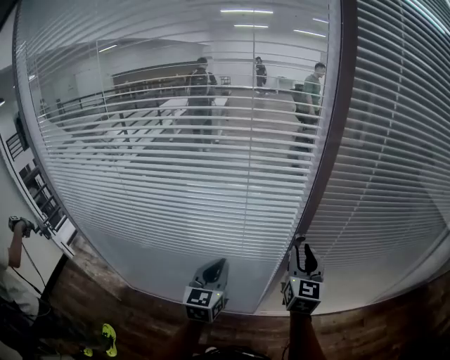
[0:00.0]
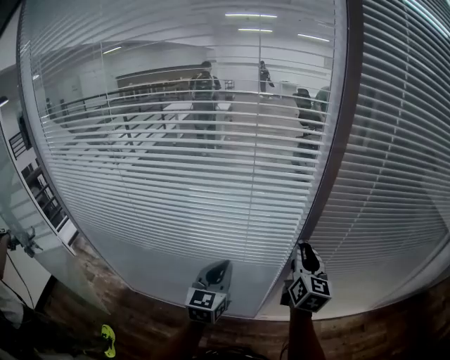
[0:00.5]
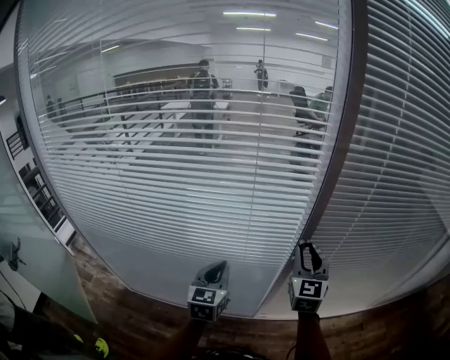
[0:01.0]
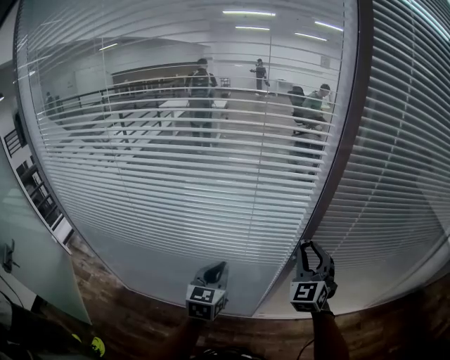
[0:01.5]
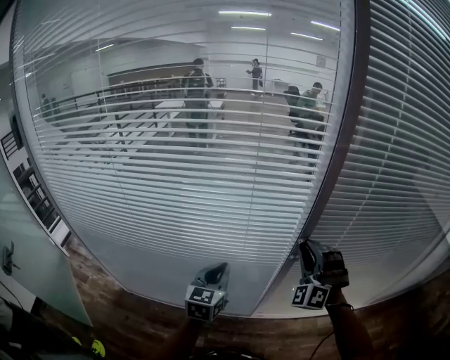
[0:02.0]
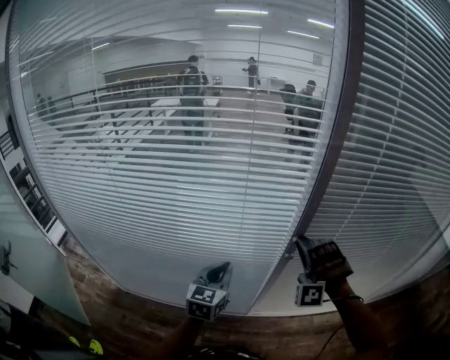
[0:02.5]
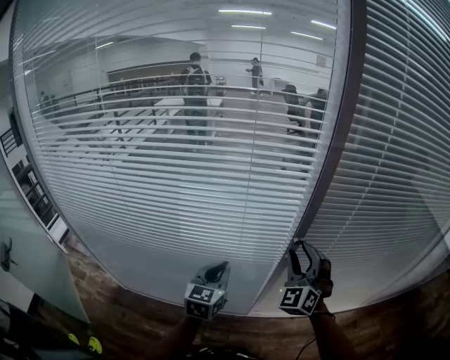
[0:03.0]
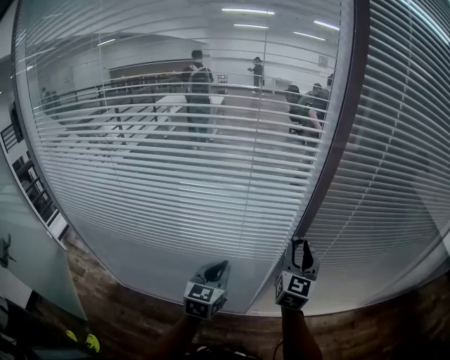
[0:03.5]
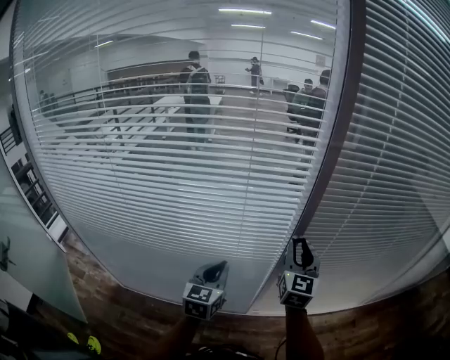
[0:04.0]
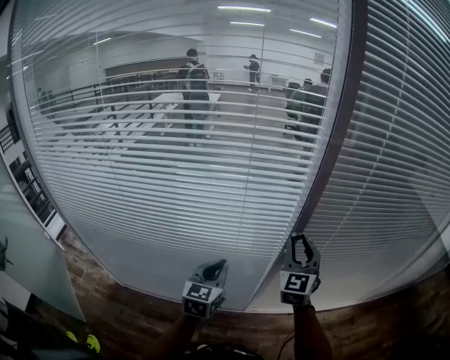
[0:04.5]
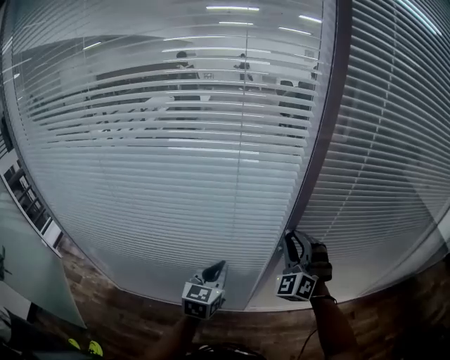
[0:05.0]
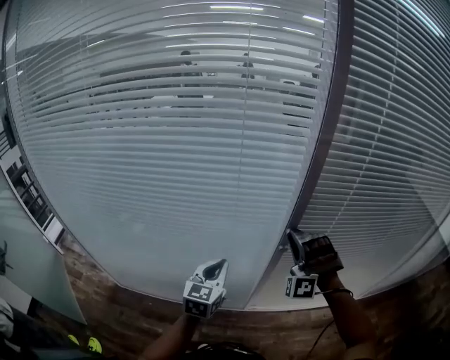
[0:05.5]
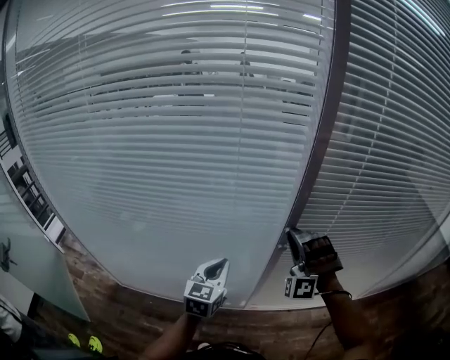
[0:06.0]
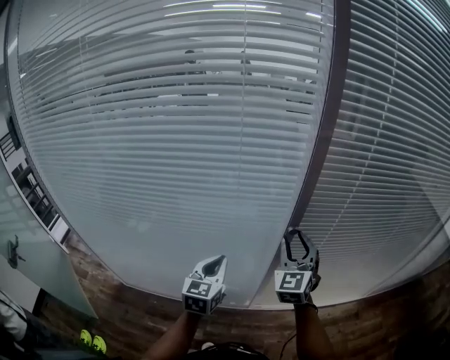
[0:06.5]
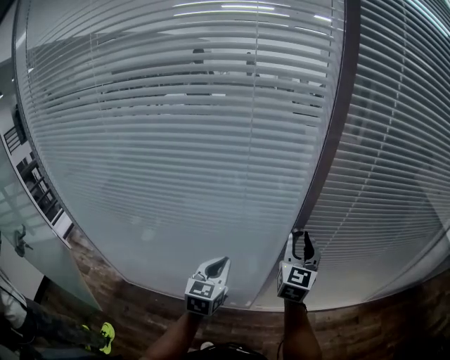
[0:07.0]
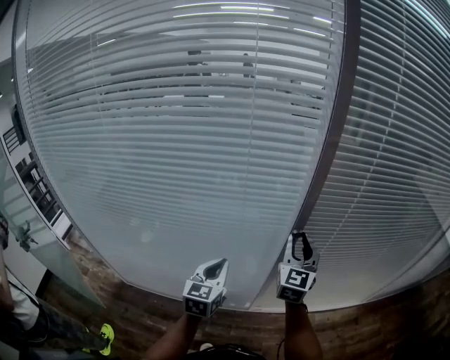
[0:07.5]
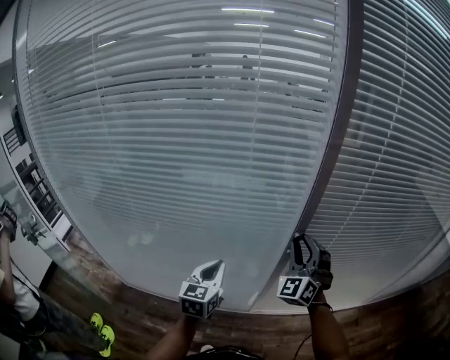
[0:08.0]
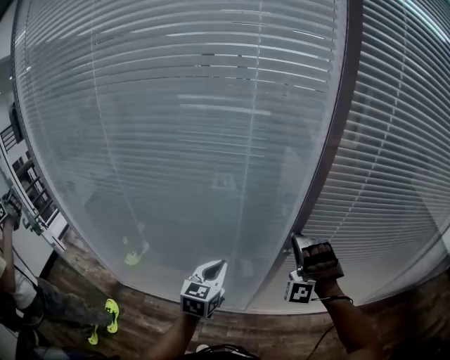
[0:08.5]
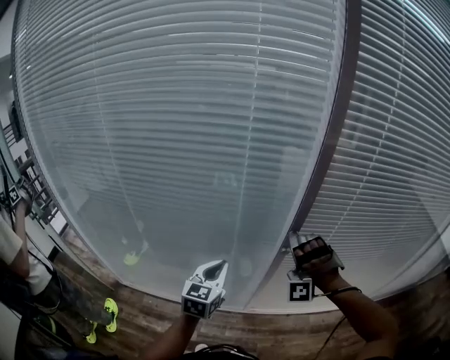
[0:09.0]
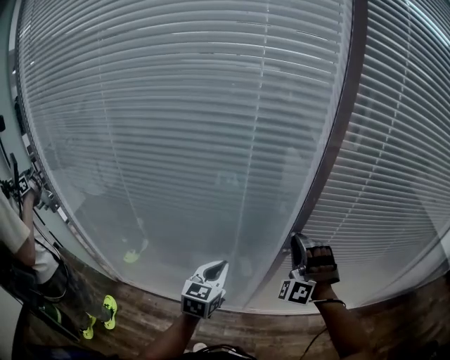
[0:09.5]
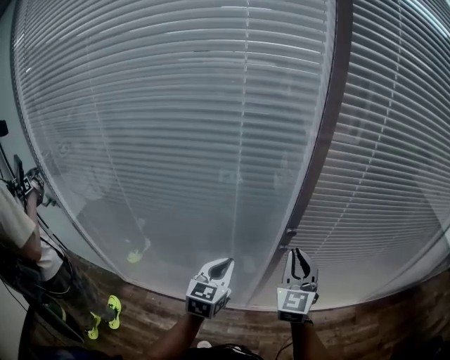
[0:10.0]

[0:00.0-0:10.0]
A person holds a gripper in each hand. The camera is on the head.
0:00.0 to 0:02.0: The right gripper rolls counterclockwise, seen from behind, by roughly 80 degrees.
0:02.0 to 0:04.0: The right gripper rolls clockwise, seen from behind, by approximately 70 degrees.
0:04.0 to 0:06.0: The right gripper twists roughly 90 degrees counterclockwise, seen from behind.
0:06.0 to 0:08.0: The right gripper rolls clockwise, seen from behind, by about 40 degrees.
0:08.0 to 0:10.0: The left gripper travels to the right and upward by approximately 10 cm. Meanwhile the right gripper travels backward by some 5 cm, and turns by about 30 degrees.

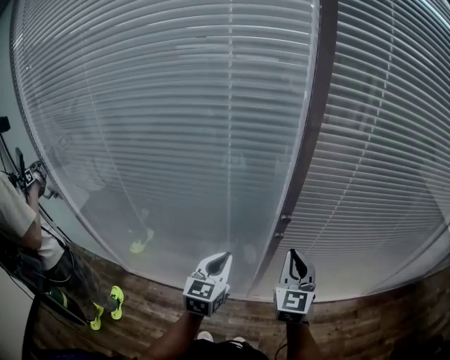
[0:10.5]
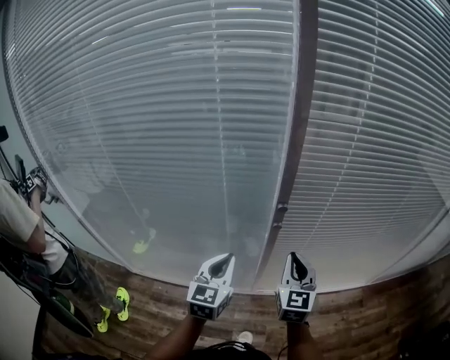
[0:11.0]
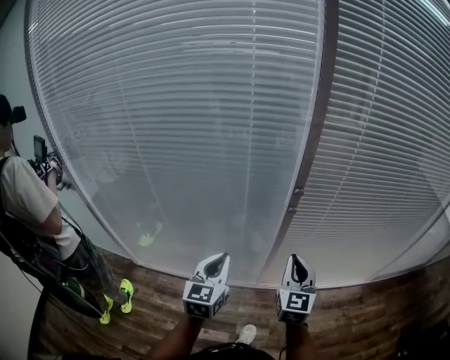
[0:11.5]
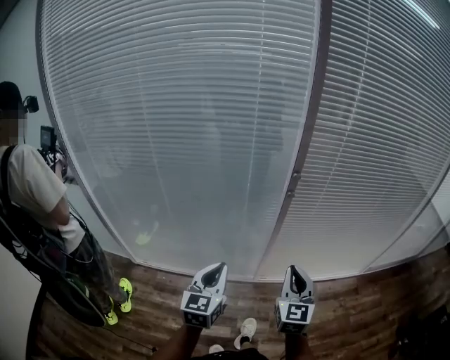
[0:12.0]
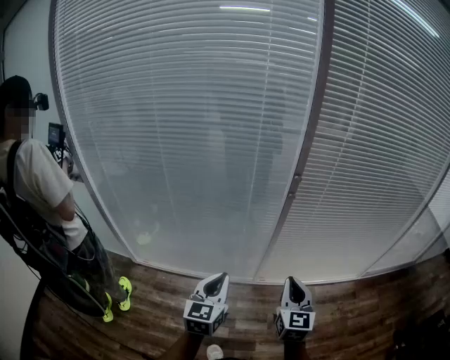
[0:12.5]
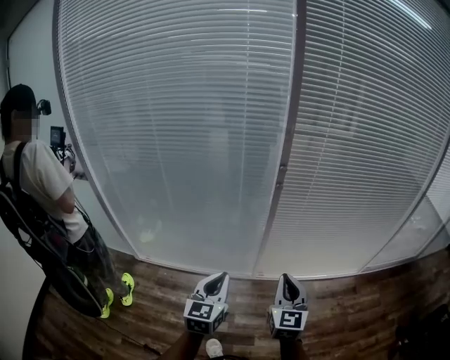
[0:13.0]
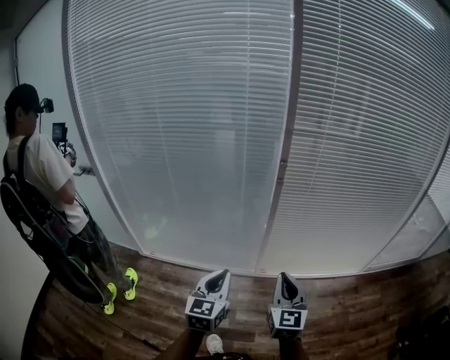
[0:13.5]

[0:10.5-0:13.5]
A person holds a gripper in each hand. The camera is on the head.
0:10.5 to 0:12.0: Both grippers move backward, about 25 cm.
0:12.0 to 0:13.5: Both grippers move backward and to the right, some 10 cm.

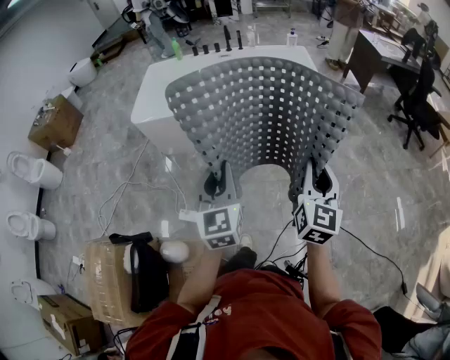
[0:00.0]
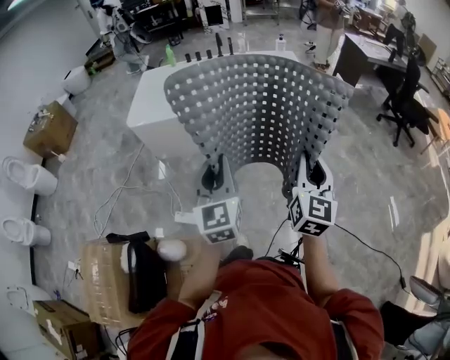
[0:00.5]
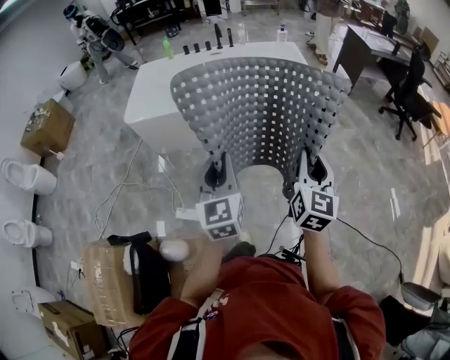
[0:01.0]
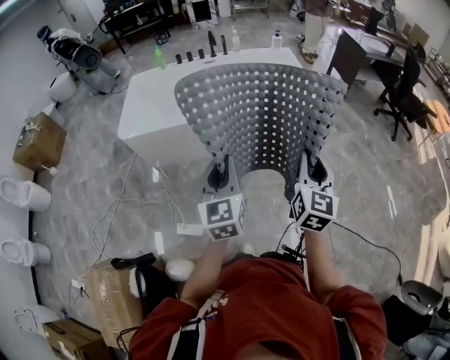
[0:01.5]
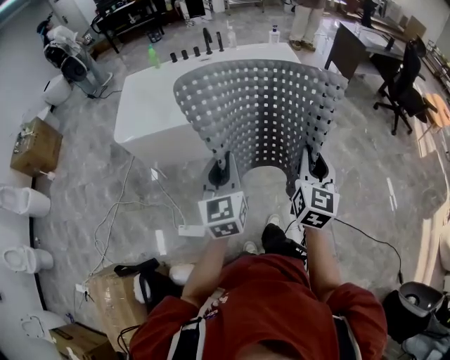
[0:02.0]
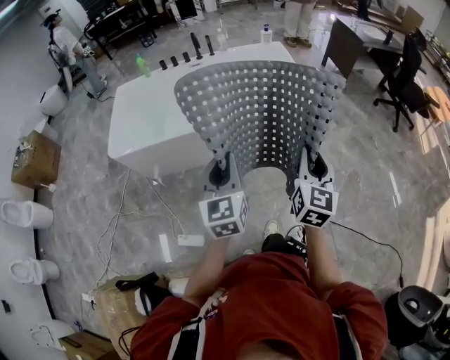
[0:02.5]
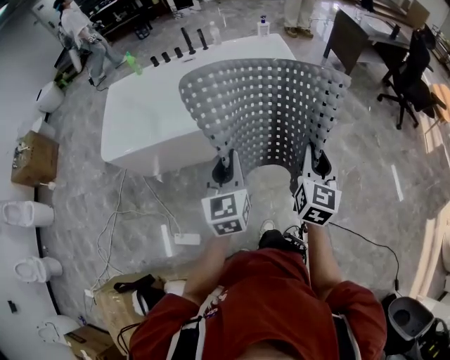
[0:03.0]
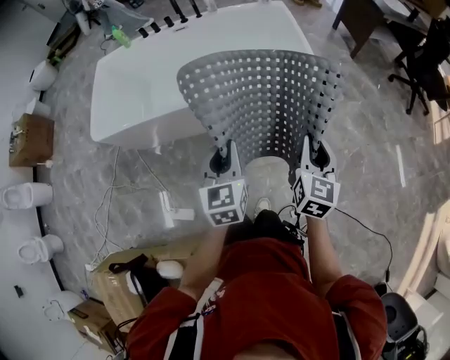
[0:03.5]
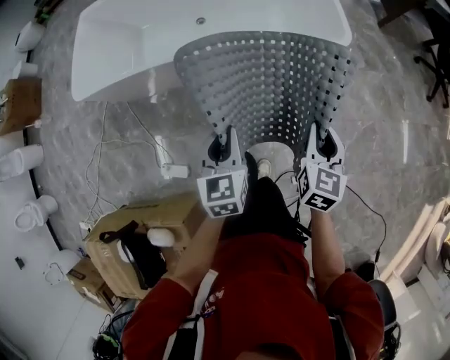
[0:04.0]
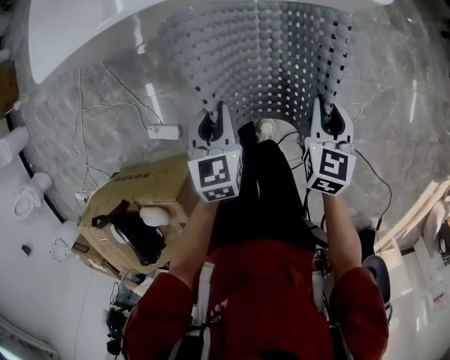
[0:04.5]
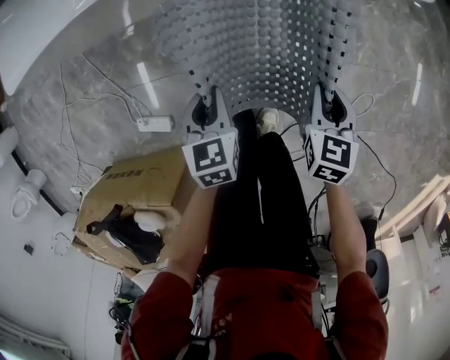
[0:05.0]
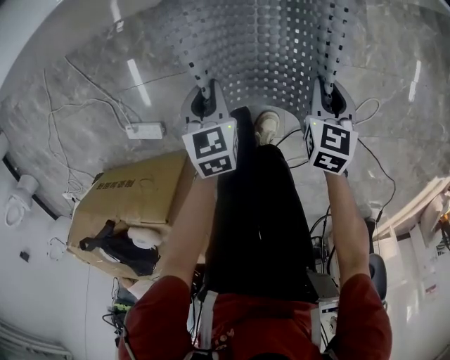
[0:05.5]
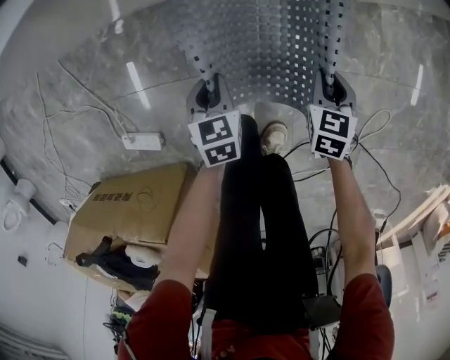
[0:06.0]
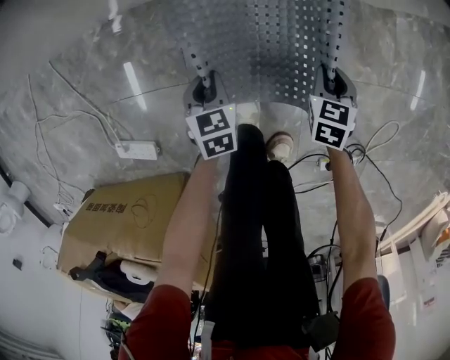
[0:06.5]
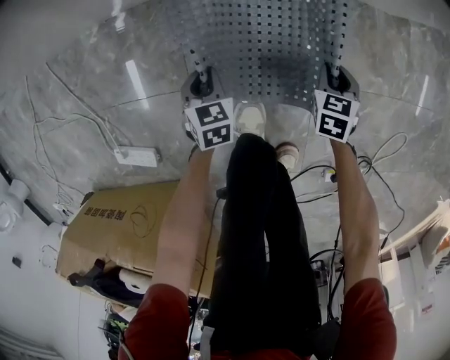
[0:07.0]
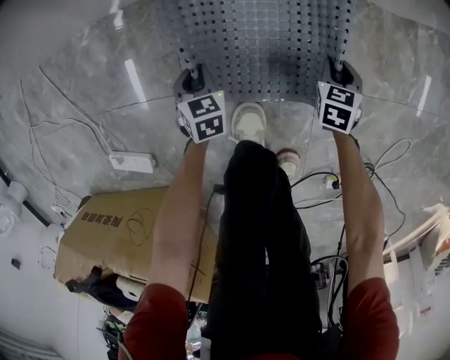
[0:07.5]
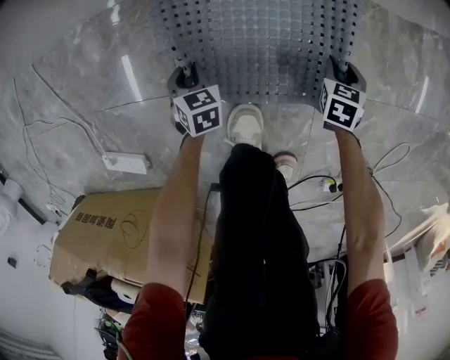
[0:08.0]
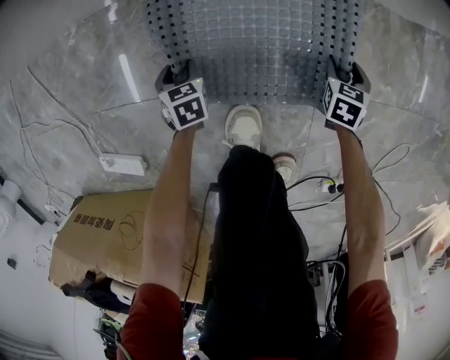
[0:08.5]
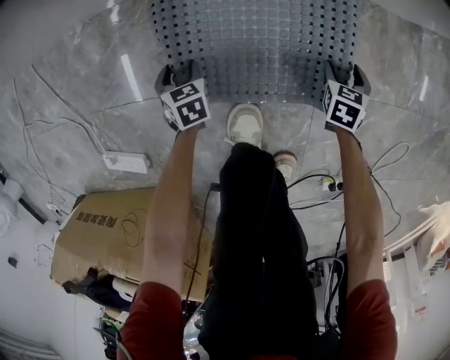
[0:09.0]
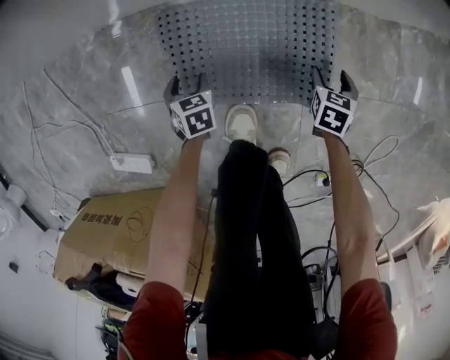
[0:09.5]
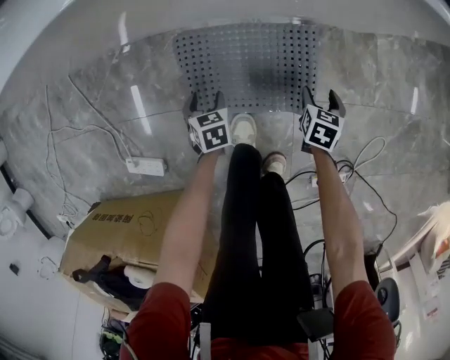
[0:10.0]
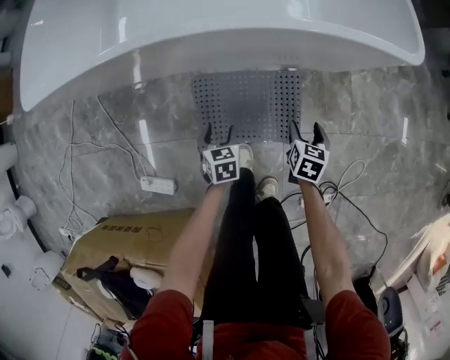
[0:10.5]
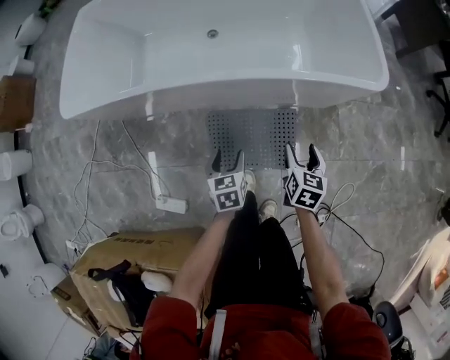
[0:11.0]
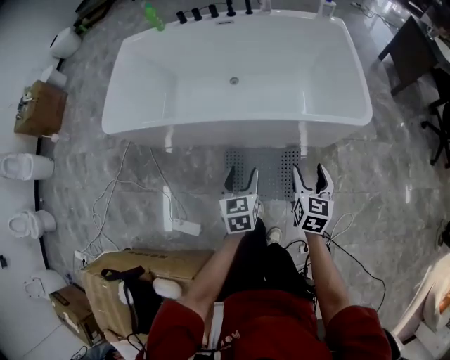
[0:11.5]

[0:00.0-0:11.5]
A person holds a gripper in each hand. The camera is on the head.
0:00.0 to 0:02.0: The left gripper moves forward, roughly 10 cm. The right gripper goes about 10 cm forward and to the left.
0:02.0 to 0:04.0: The two grippers go about 30 cm downward and forward. The left gripper changes its angle by roughly 20 degrees. The right gripper turns by roughly 20 degrees.
0:04.0 to 0:06.0: The two grippers go about 50 cm downward. The right gripper turns by about 30 degrees; the left gripper changes its angle by some 20 degrees.
0:06.0 to 0:07.5: The two grippers go some 20 cm downward.
0:07.5 to 0:09.5: The right gripper opens; the left gripper opens its fingers.
0:09.5 to 0:11.5: Both grippers travel together upward, some 70 cm. The right gripper tilts its fingers some 30 degrees upward. The left gripper tilts its fingers about 30 degrees upward.

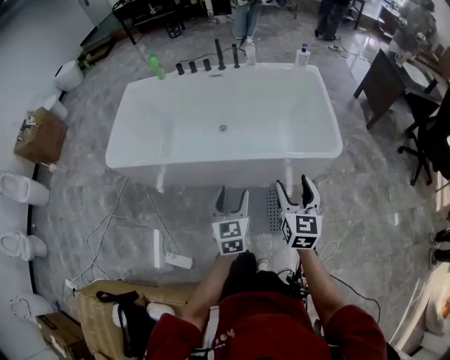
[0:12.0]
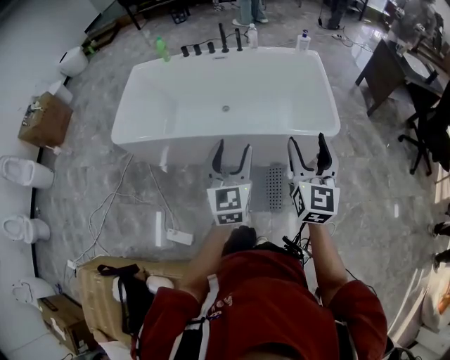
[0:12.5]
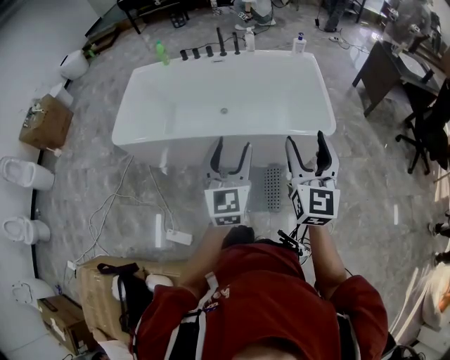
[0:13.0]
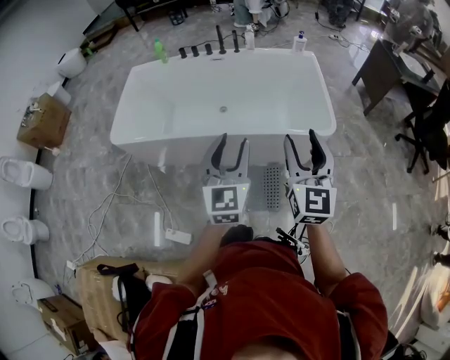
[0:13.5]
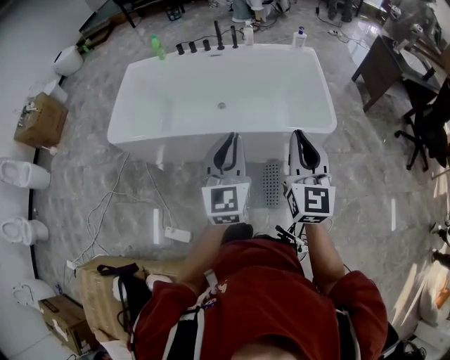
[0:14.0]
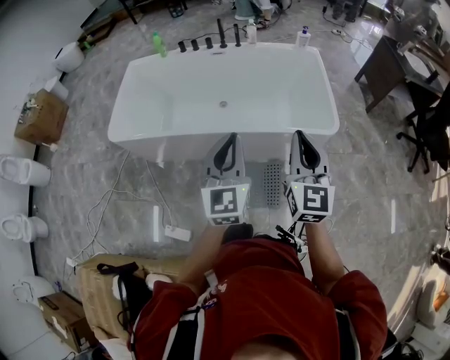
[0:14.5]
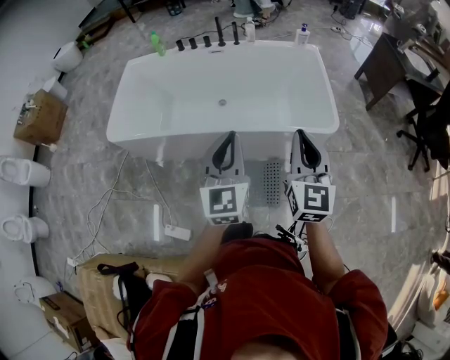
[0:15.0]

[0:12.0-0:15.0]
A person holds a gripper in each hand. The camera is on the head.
0:12.0 to 0:13.5: Both grippers move upward, approximately 20 cm. The left gripper turns by roughly 20 degrees.
0:13.5 to 0:15.0: The left gripper closes. The right gripper closes up.
